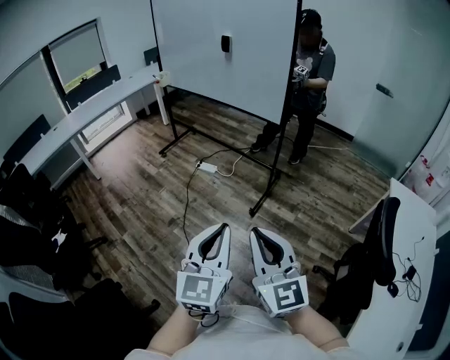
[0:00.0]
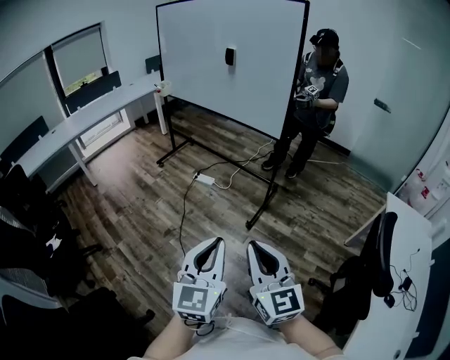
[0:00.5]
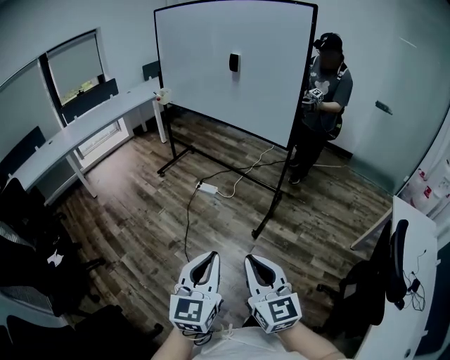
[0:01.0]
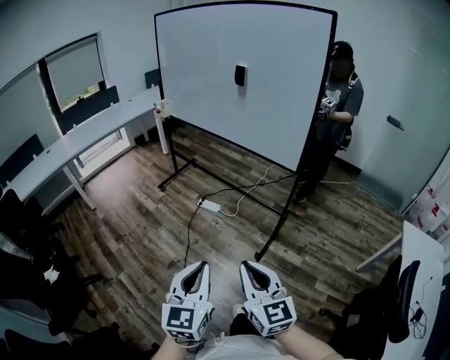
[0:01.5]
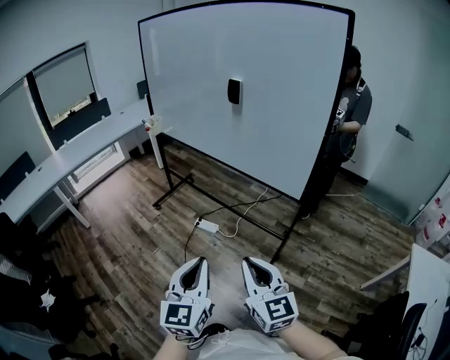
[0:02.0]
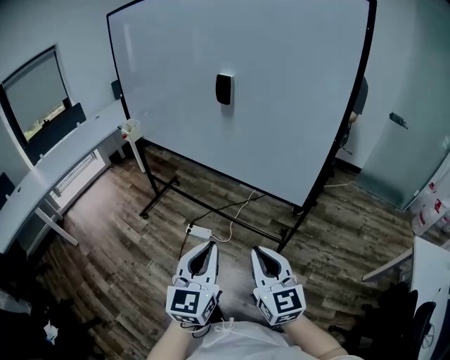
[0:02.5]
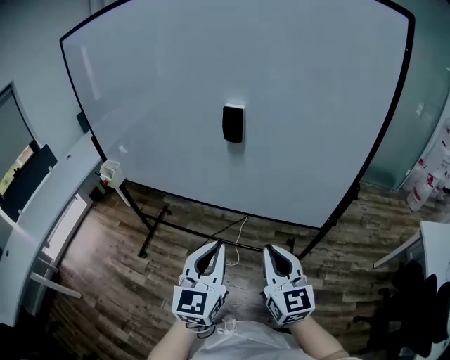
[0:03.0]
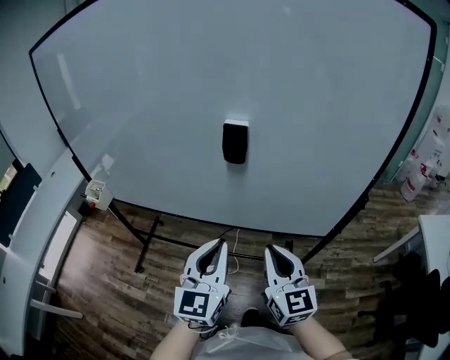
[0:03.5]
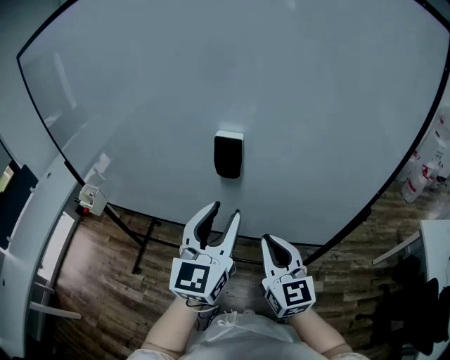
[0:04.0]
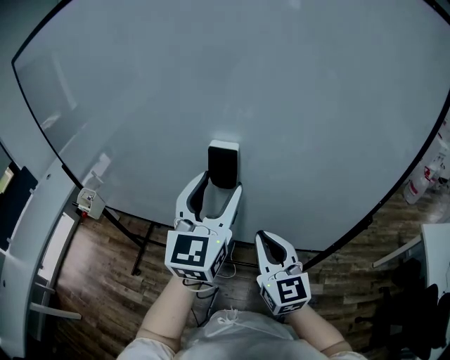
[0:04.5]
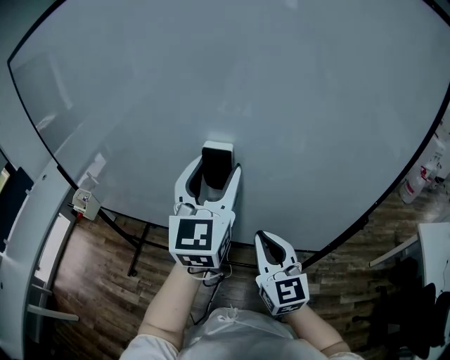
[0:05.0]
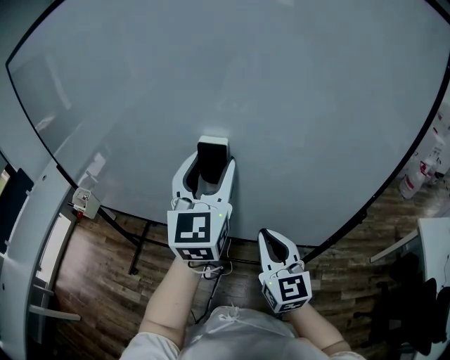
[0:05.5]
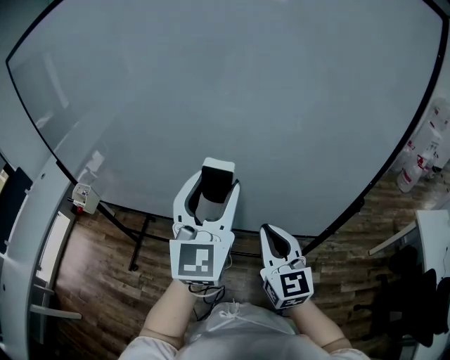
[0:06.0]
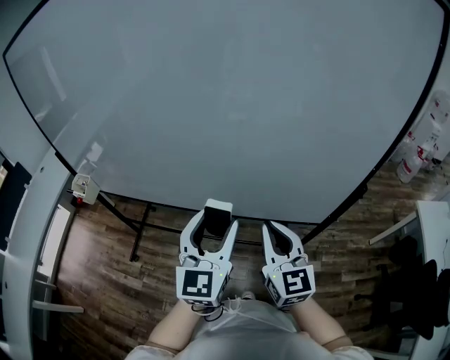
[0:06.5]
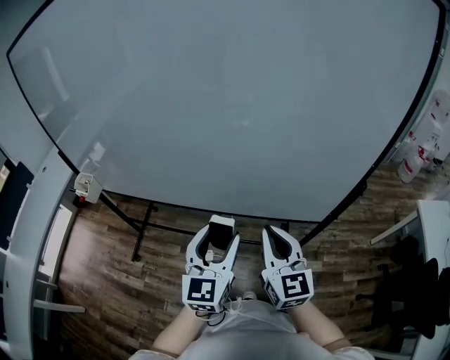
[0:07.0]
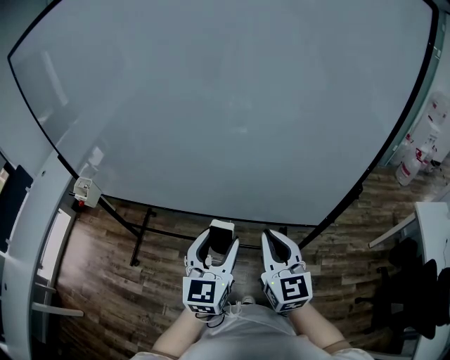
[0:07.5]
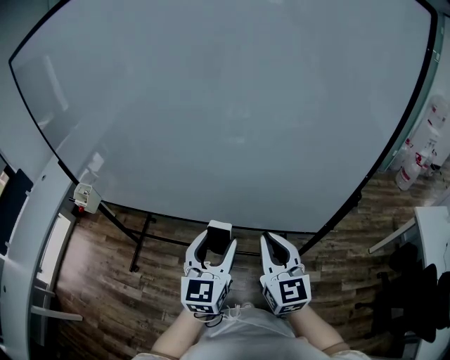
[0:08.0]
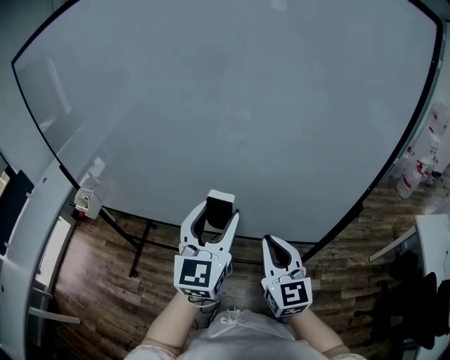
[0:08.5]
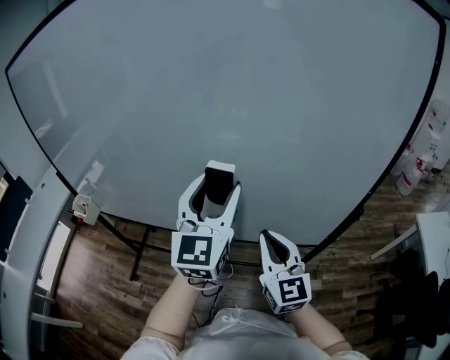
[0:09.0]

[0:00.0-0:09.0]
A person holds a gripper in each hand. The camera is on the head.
0:00.0 to 0:02.0: Both grippers travel together forward, about 40 cm.
0:02.0 to 0:04.5: The two grippers travel together, approximately 50 cm. The left gripper turns by about 30 degrees, and opens up. Meanwhile the right gripper swivels roughly 30 degrees.
0:04.5 to 0:07.0: The right gripper shifts roughly 5 cm backward, while the left gripper moves downward and backward, roughly 20 cm.
0:07.0 to 0:09.0: The right gripper heads forward, covering roughly 5 cm; the left gripper travels upward and forward by about 20 cm.

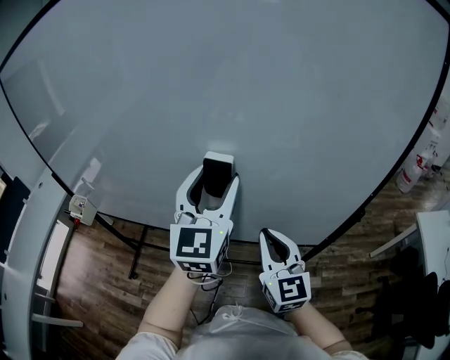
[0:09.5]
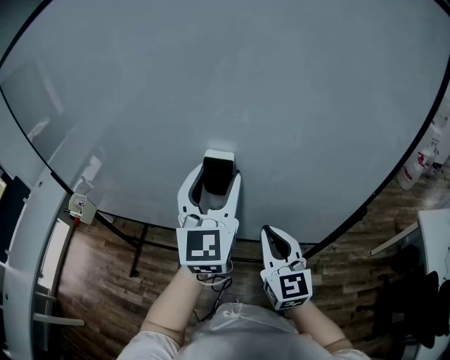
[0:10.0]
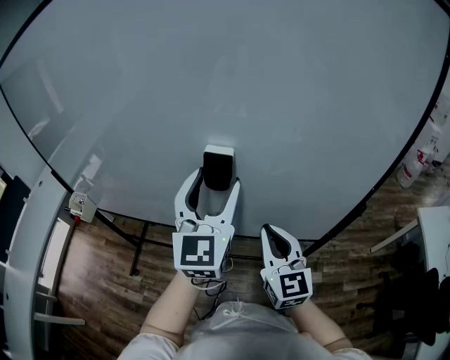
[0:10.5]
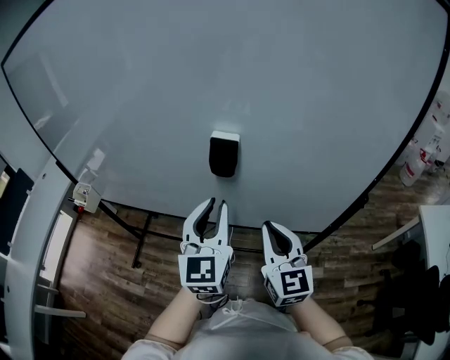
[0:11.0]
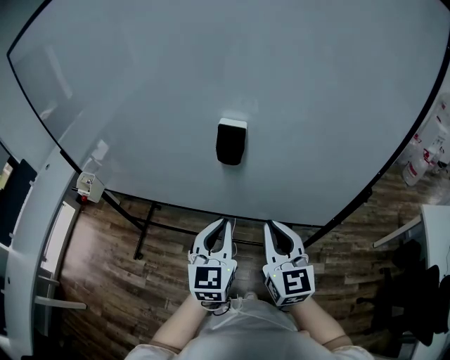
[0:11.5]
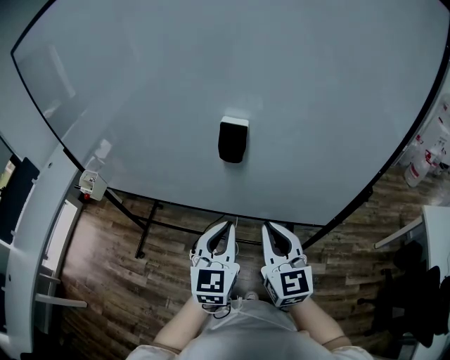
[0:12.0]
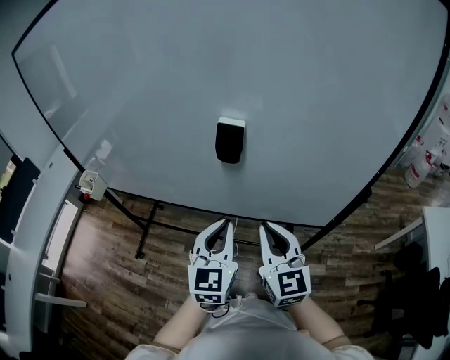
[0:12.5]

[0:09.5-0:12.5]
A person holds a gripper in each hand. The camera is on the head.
0:09.5 to 0:11.0: The left gripper goes roughly 10 cm downward and backward, and closes its fingers.
0:11.0 to 0:12.5: The left gripper is displaced downward and backward by roughly 10 cm.

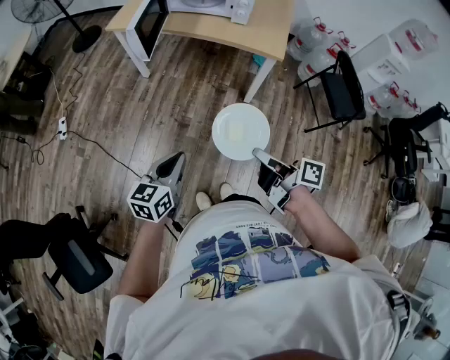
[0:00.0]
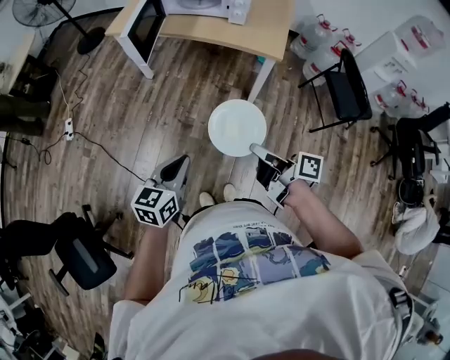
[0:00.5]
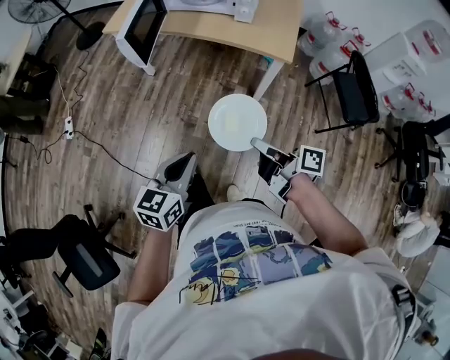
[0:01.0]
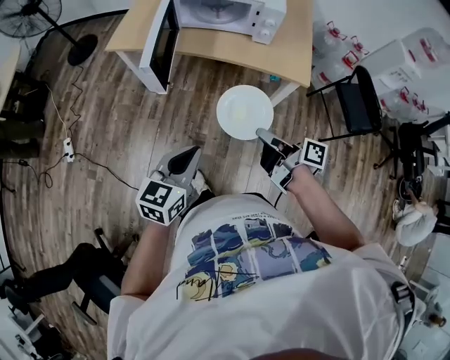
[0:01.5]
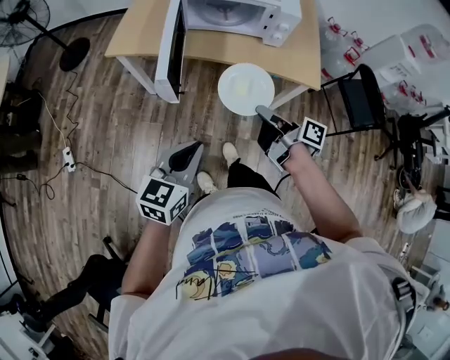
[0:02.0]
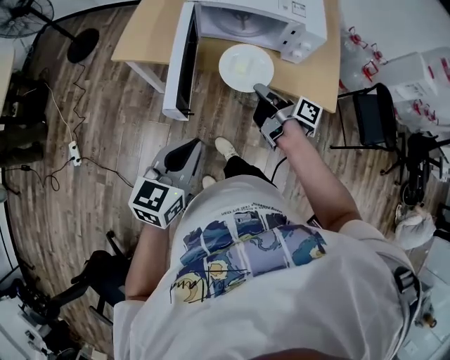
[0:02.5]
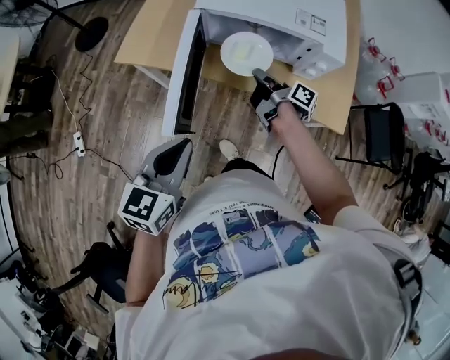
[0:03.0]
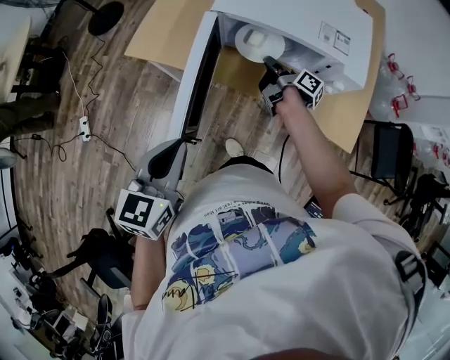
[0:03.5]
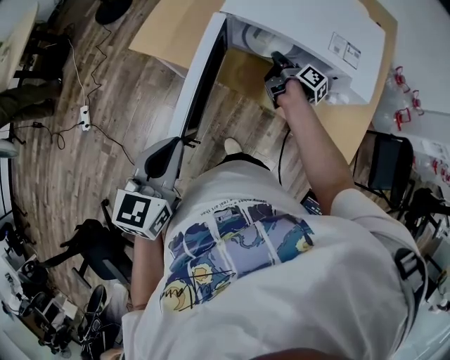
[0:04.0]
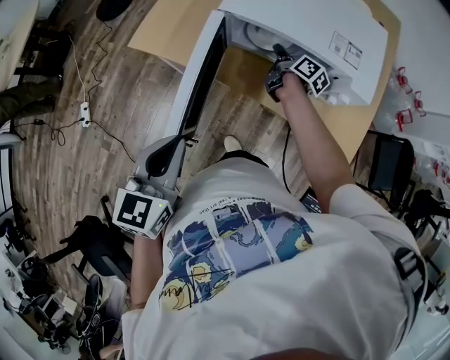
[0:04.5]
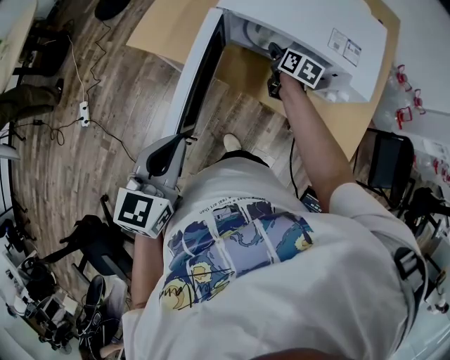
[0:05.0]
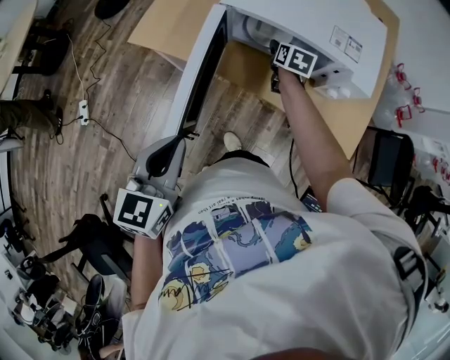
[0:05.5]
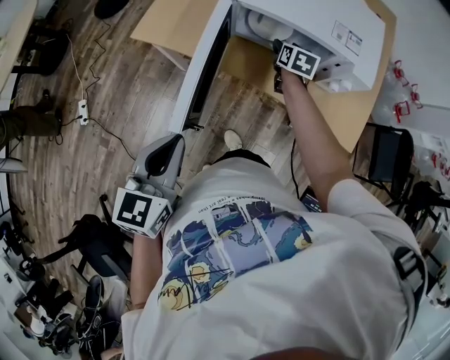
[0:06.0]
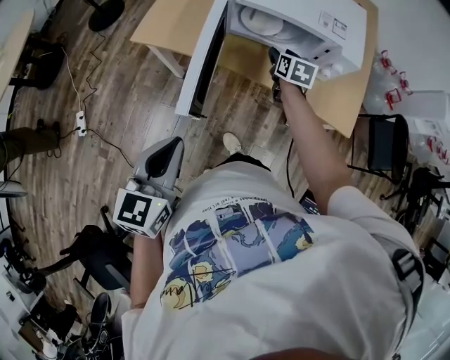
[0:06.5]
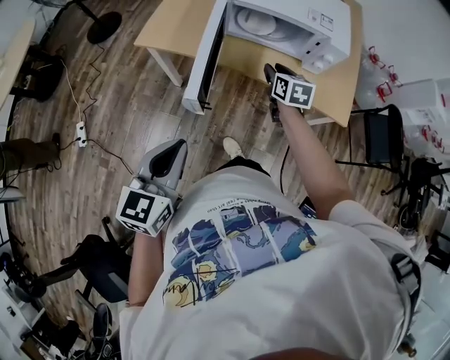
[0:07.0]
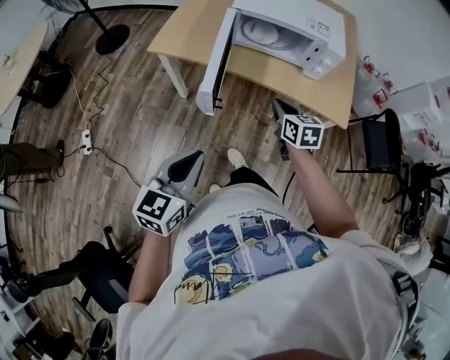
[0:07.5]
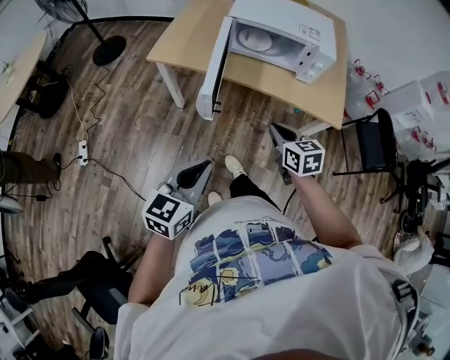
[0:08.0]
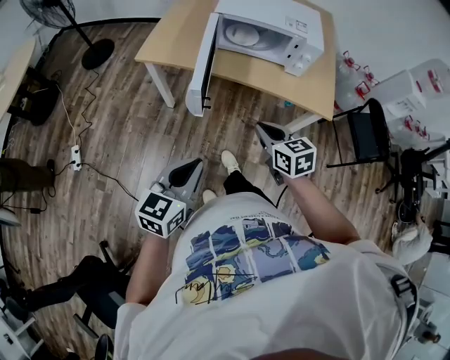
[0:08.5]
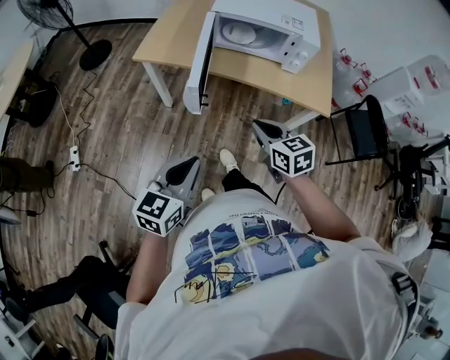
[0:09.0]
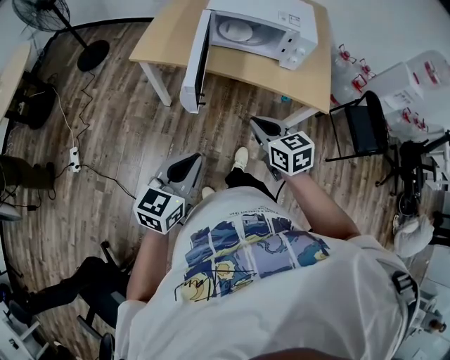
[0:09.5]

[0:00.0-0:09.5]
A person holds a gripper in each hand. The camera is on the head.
0:00.0 to 0:02.0: The two grippers go about 30 cm forward.
0:02.0 to 0:04.0: The left gripper moves forward, about 20 cm, and swivels roughly 20 degrees. The right gripper travels forward by some 40 cm.
0:04.0 to 0:05.5: The right gripper rolls counterclockwise, seen from behind, by about 60 degrees, and opens its fingers.
0:05.5 to 0:07.5: The left gripper moves backward, approximately 20 cm; the right gripper travels backward by about 35 cm, and closes up.
0:07.5 to 0:09.5: The right gripper is displaced backward by approximately 10 cm.

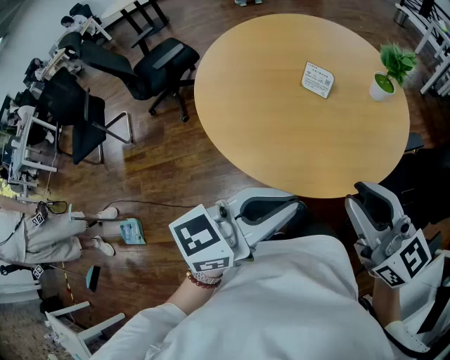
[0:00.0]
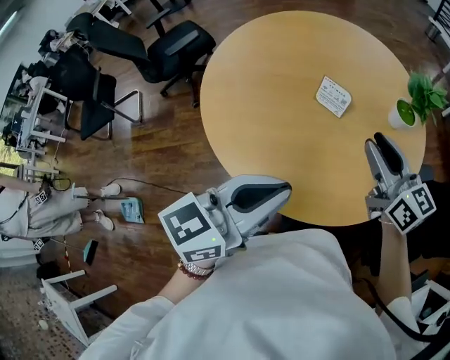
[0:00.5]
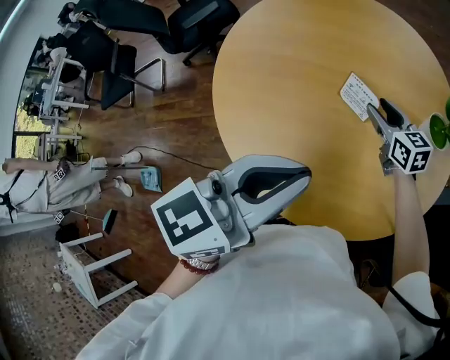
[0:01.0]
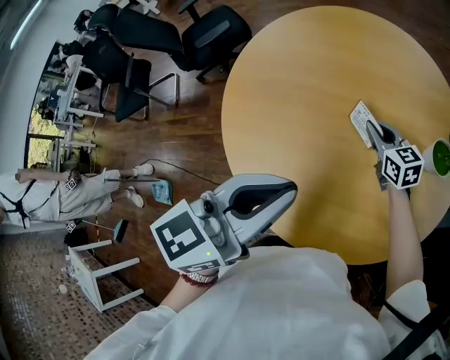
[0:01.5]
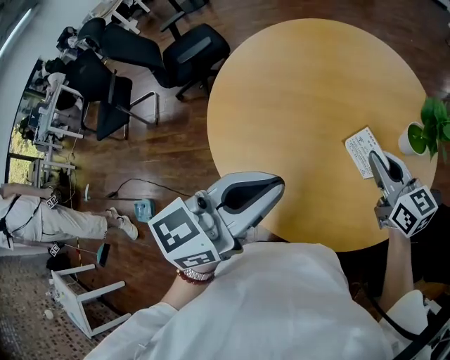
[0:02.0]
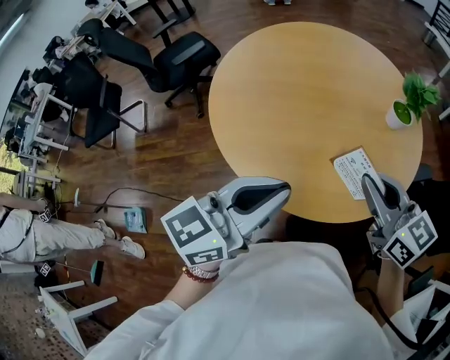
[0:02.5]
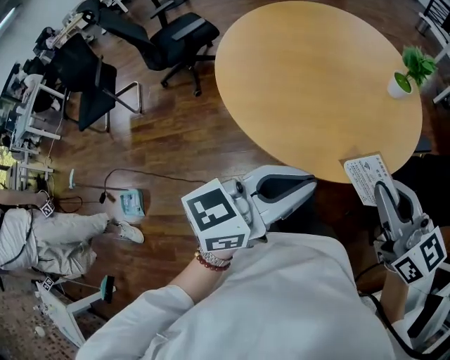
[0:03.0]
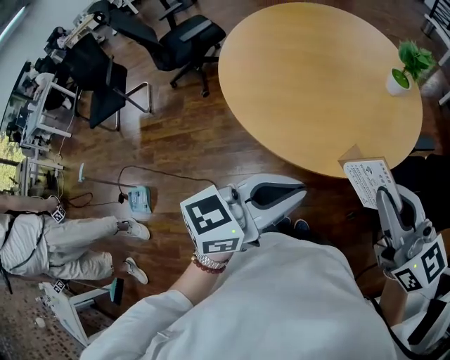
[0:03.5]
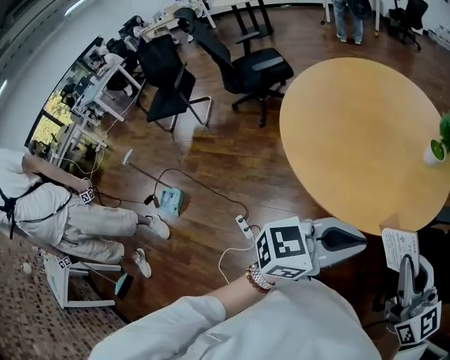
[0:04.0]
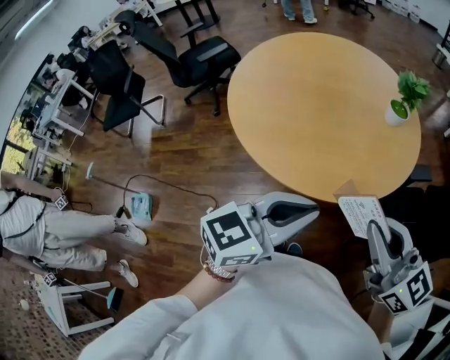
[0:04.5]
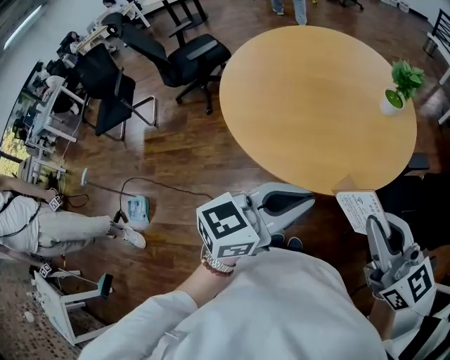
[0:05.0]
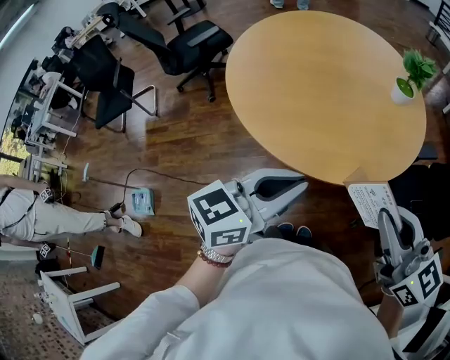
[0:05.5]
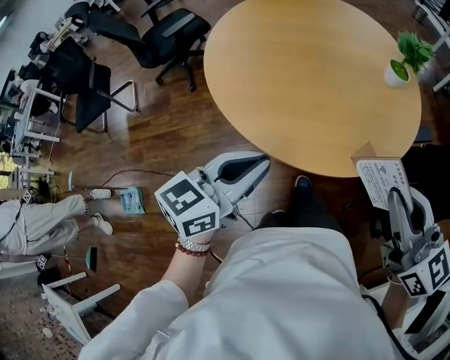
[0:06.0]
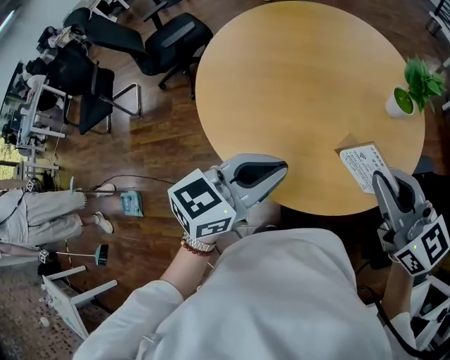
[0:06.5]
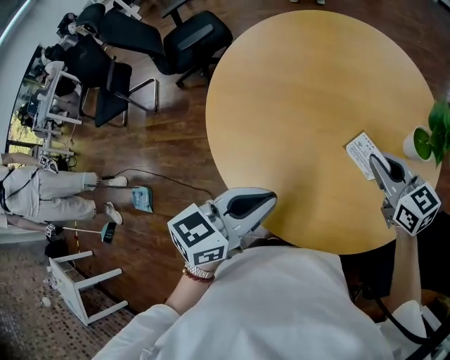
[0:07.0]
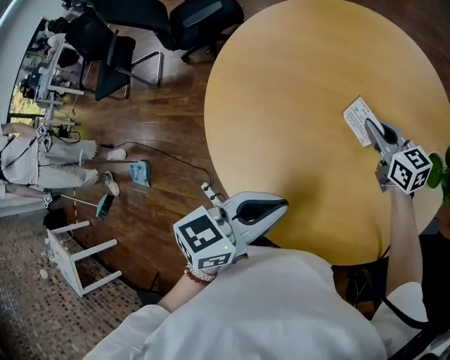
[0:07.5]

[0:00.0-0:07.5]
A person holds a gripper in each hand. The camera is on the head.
0:00.0 to 0:02.0: The left gripper heads forward, covering roughly 20 cm; the right gripper moves forward, about 30 cm, and opens, then closes once more.
0:02.0 to 0:04.0: The right gripper is displaced backward by some 35 cm. Meanwhile the left gripper shifts roughly 25 cm backward and to the right.
0:04.0 to 0:05.5: The left gripper heads to the left, covering roughly 10 cm. Meanwhile the right gripper is displaced to the left by roughly 5 cm.
0:05.5 to 0:07.5: The left gripper heads forward, covering about 30 cm, and rotates approximately 20 degrees, while the right gripper heads forward and downward, covering approximately 60 cm, and rotates approximately 20 degrees.
